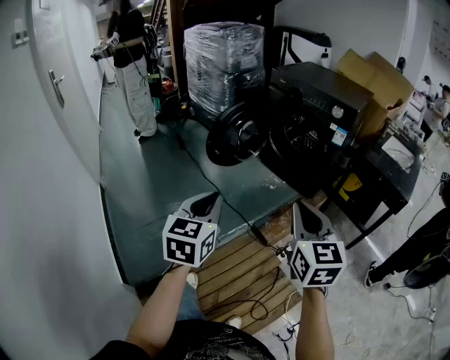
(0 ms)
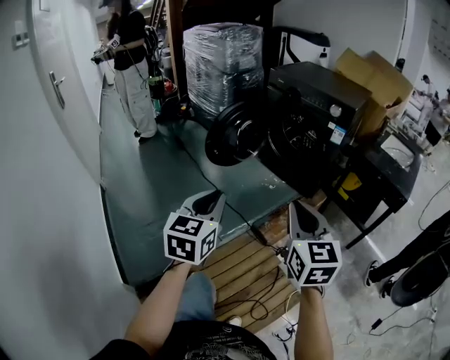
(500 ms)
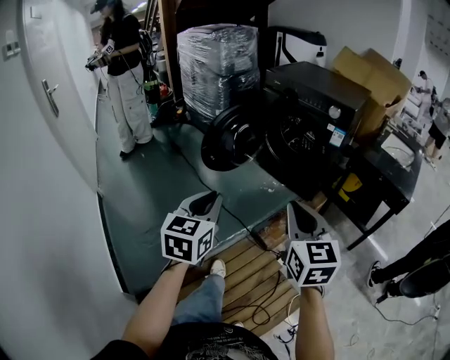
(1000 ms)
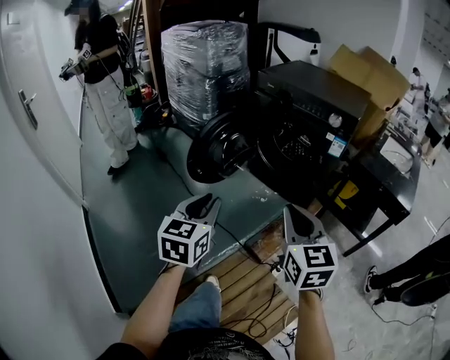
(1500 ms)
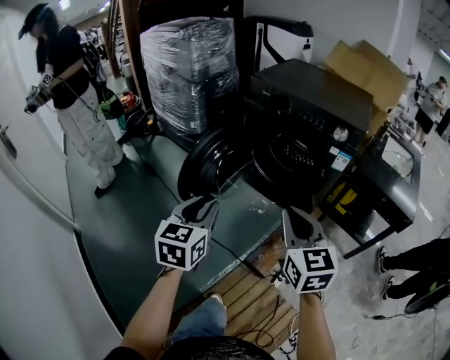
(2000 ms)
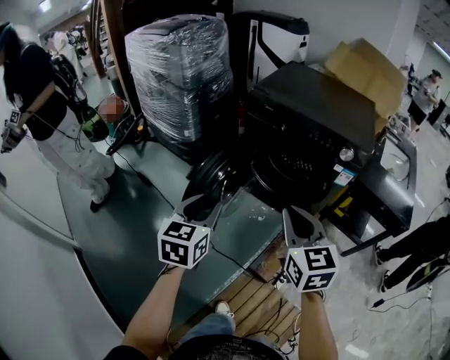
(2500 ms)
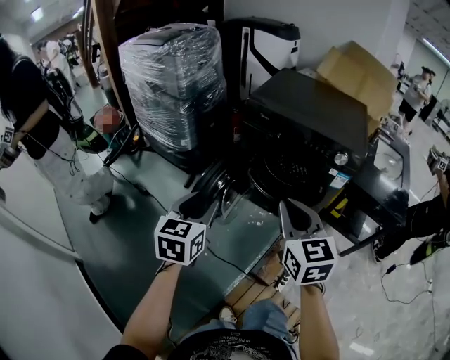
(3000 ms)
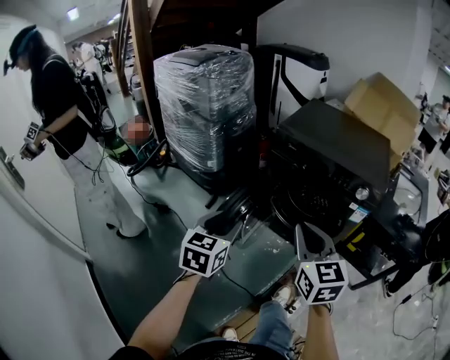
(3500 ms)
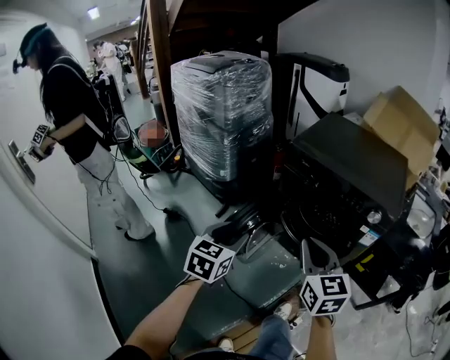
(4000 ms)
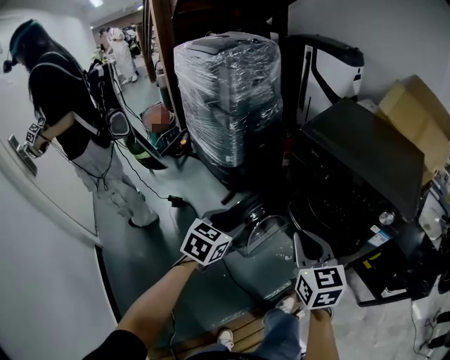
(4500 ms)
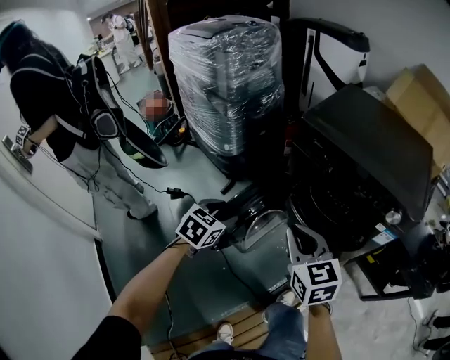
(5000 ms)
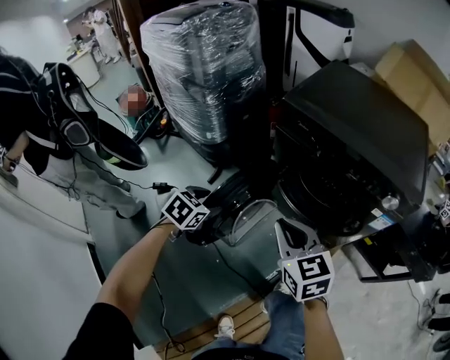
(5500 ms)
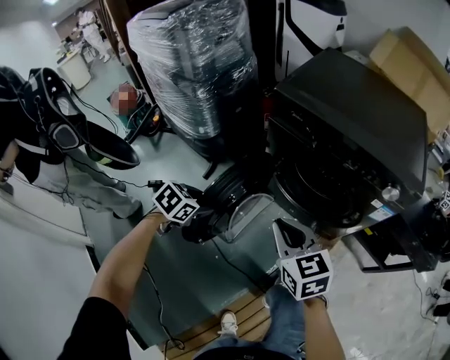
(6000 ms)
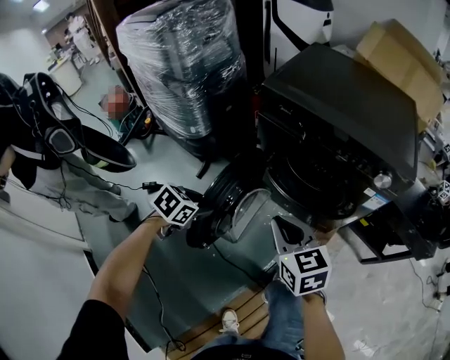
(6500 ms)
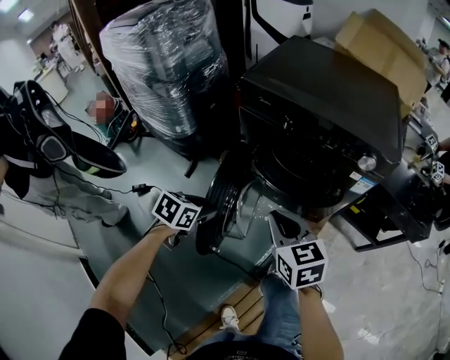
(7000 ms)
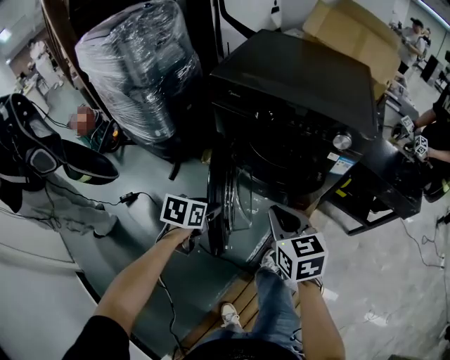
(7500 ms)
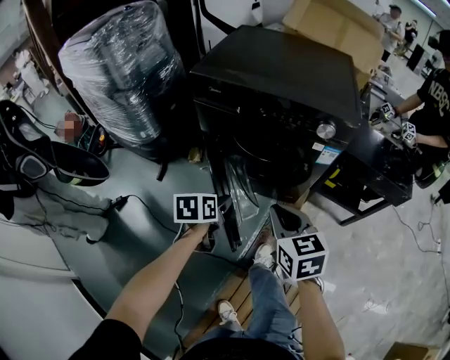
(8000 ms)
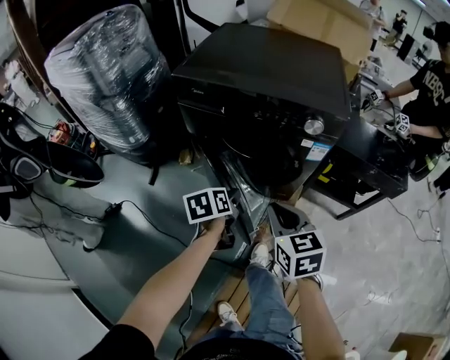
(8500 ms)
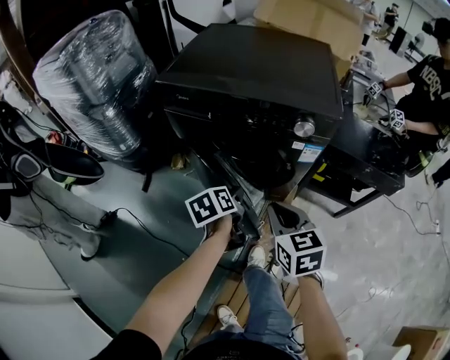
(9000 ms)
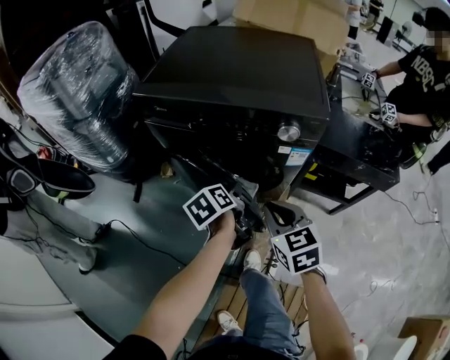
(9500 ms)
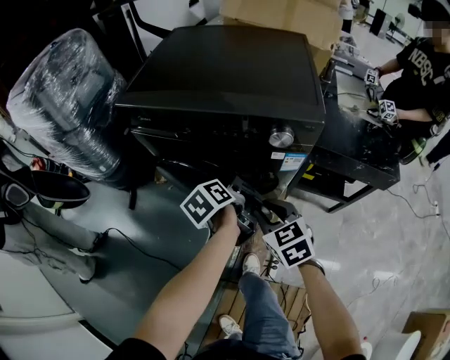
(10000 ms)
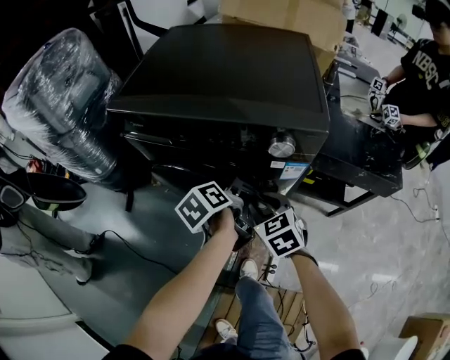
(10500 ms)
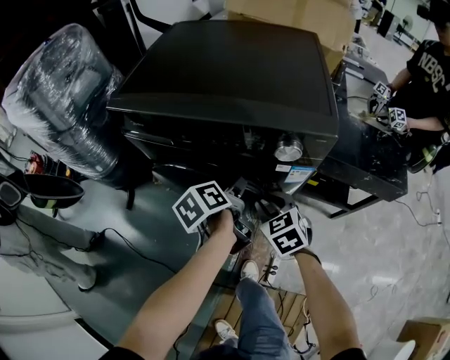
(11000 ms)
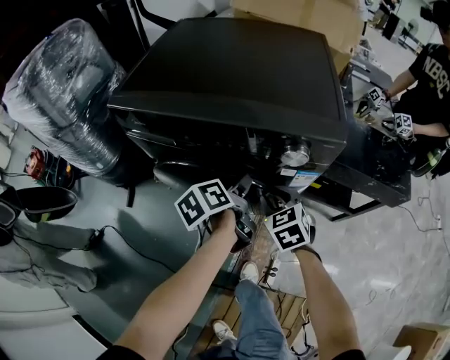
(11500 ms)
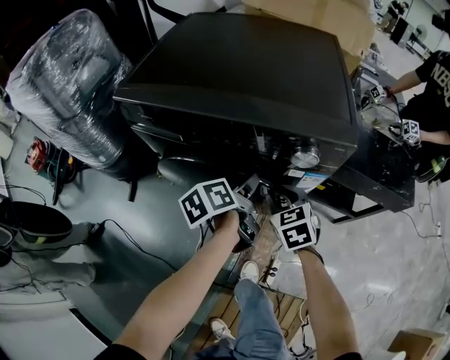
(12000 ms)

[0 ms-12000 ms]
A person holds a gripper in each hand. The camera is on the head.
0 ms to 2000 ms: Both grippers move forward, some 30 cm.
2000 ms to 4000 ms: The right gripper moves forward, to the left and upward, approximately 20 cm. The left gripper goes approximately 20 cm forward.
4000 ms to 6000 ms: Both grippers move downward and forward, approximately 20 cm. The left gripper angles its fingers downward, by approximately 30 degrees.
6000 ms to 8000 ms: Both grippers move to the right, roughly 20 cm. The right gripper swivels some 20 degrees; the left gripper swivels approximately 30 degrees.
8000 ms to 10000 ms: The left gripper heads to the right and forward, covering roughly 20 cm, and swivels roughly 30 degrees; the right gripper travels forward, to the right and downward by about 15 cm.
10000 ms to 12000 ms: The left gripper is displaced forward by some 5 cm, while the right gripper heads forward and downward, covering about 15 cm.

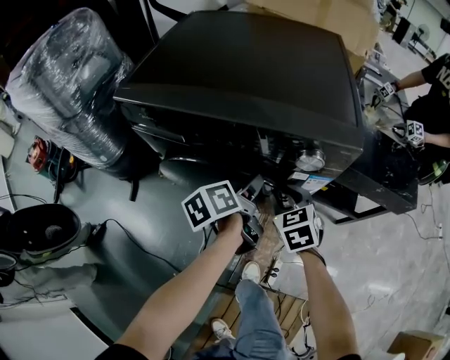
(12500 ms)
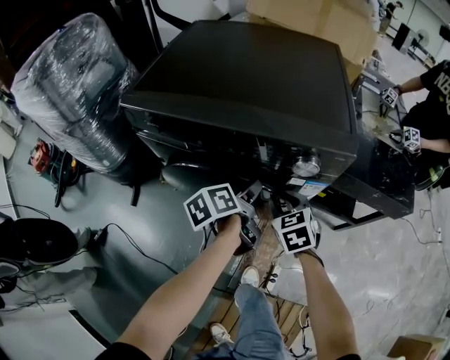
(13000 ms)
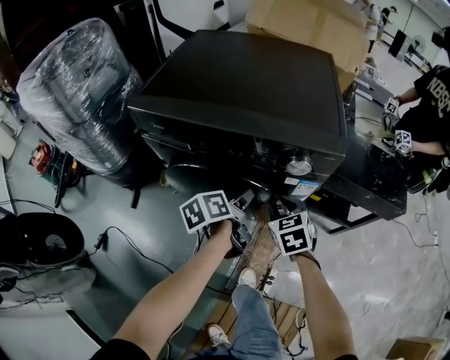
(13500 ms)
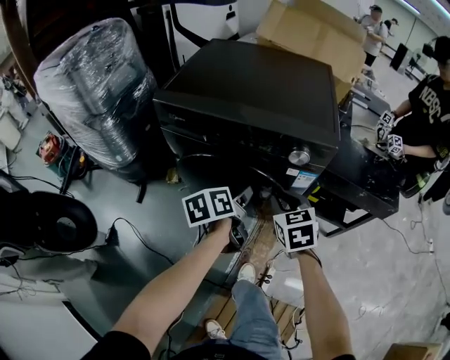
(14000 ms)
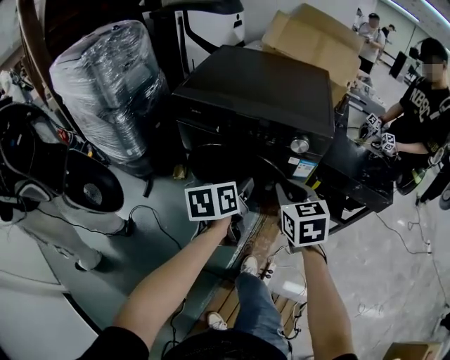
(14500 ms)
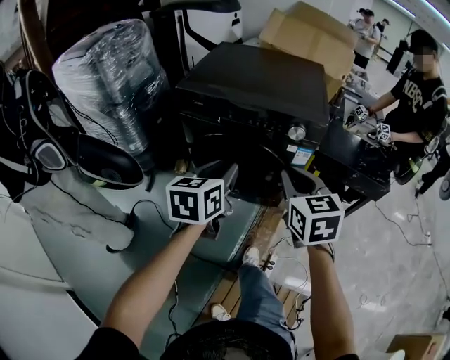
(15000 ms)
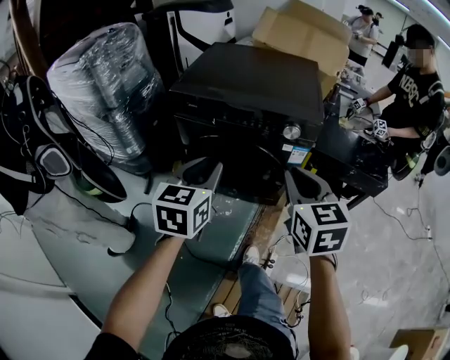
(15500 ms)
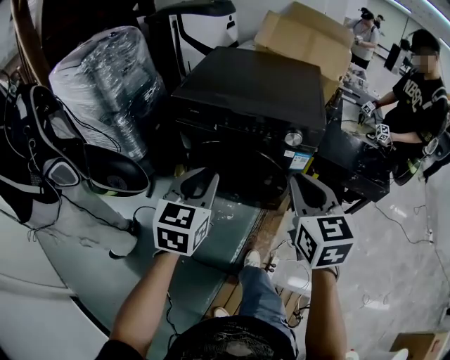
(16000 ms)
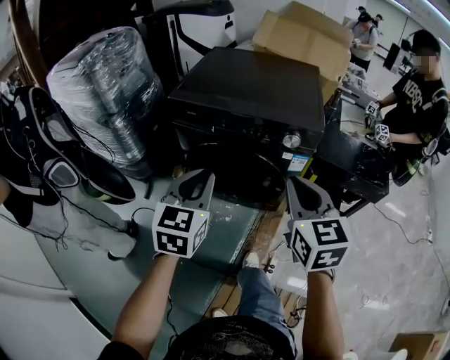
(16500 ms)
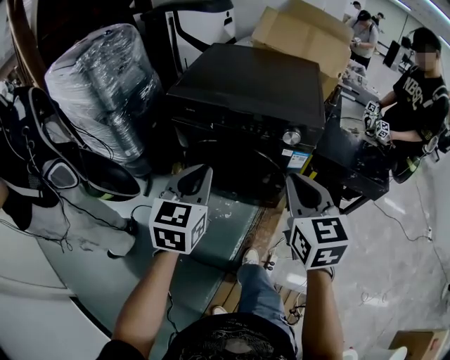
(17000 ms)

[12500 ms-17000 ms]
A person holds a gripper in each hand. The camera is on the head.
12500 ms to 14500 ms: The left gripper heads backward and upward, covering some 20 cm, rotates about 30 degrees, and closes its fingers; the right gripper goes about 25 cm upward and backward.
14500 ms to 17000 ms: The left gripper travels upward, to the left and backward by some 15 cm, swivels approximately 40 degrees, and closes its fingers. The right gripper shifts some 10 cm upward and backward.

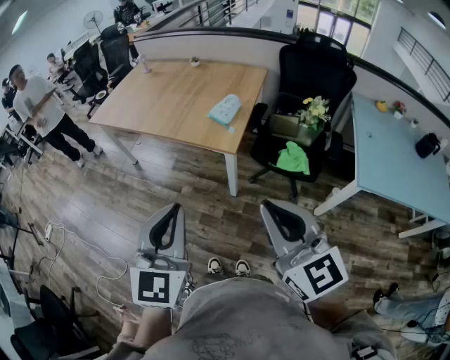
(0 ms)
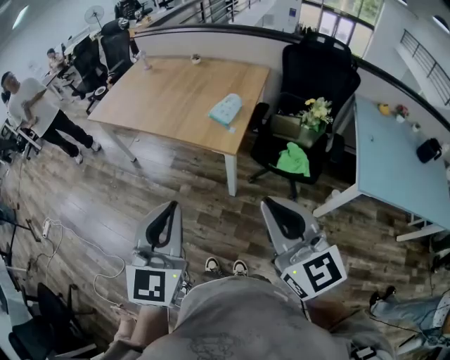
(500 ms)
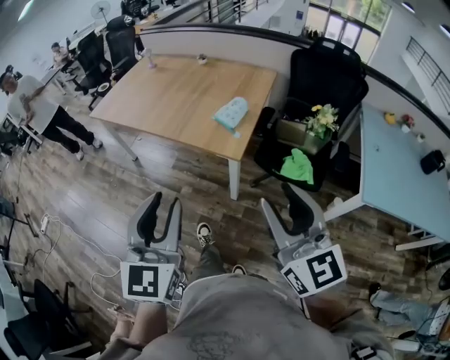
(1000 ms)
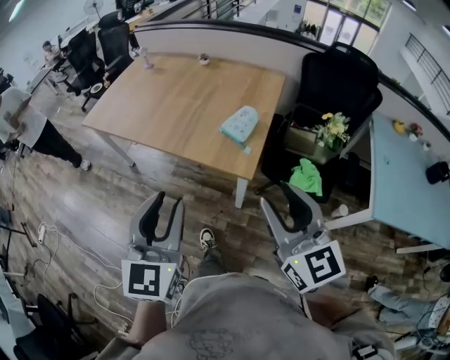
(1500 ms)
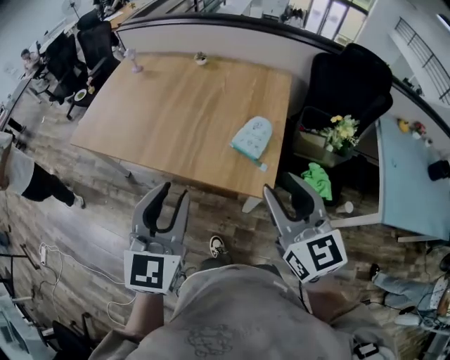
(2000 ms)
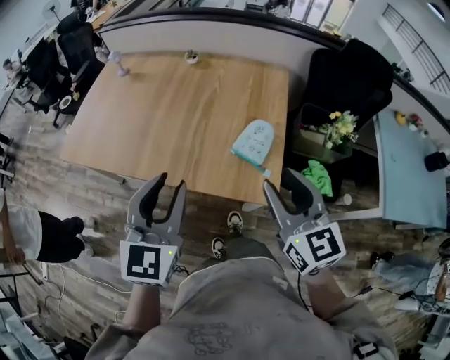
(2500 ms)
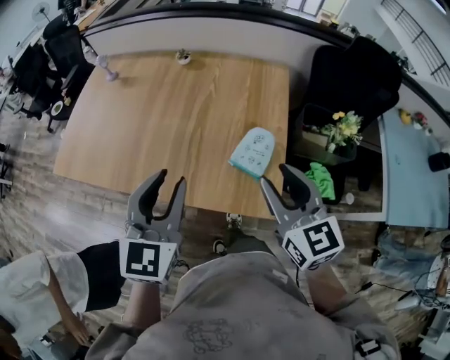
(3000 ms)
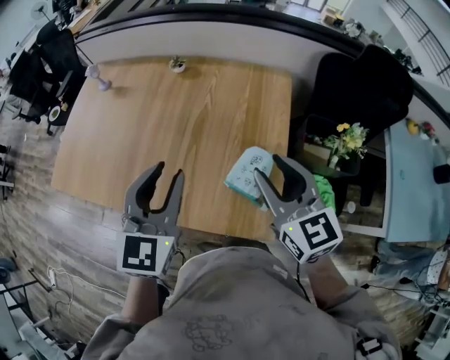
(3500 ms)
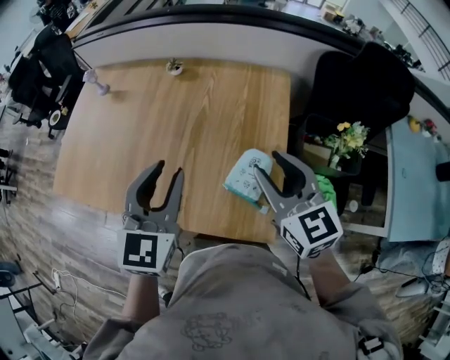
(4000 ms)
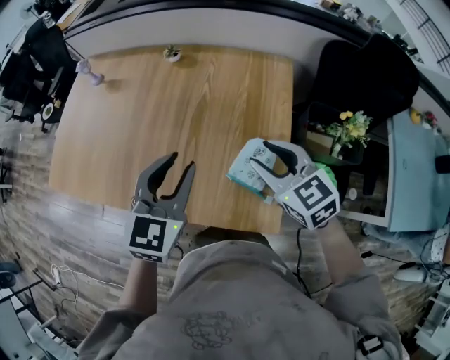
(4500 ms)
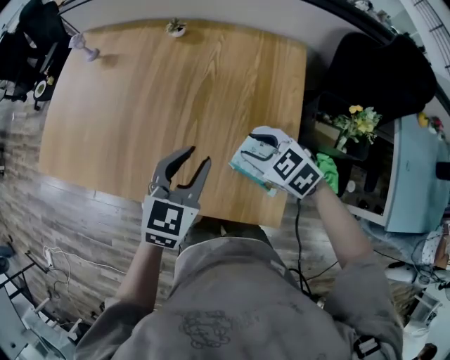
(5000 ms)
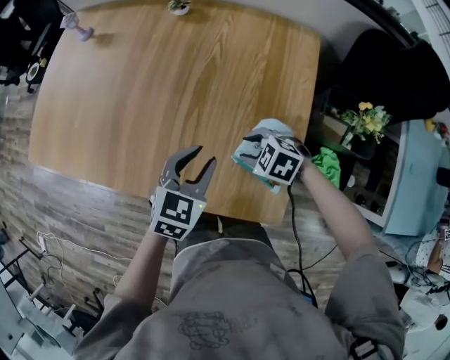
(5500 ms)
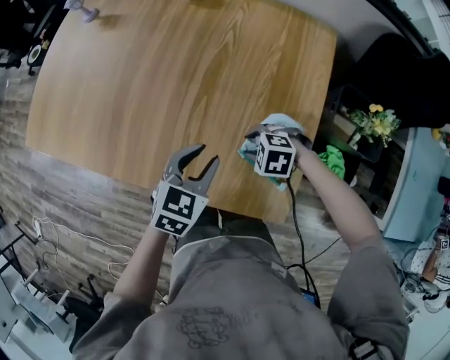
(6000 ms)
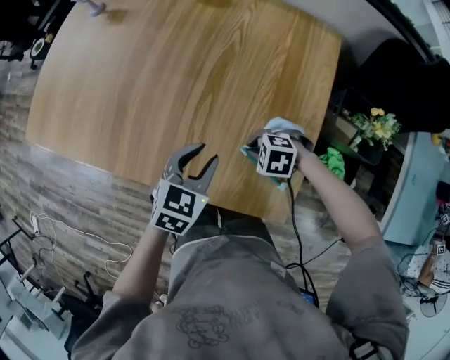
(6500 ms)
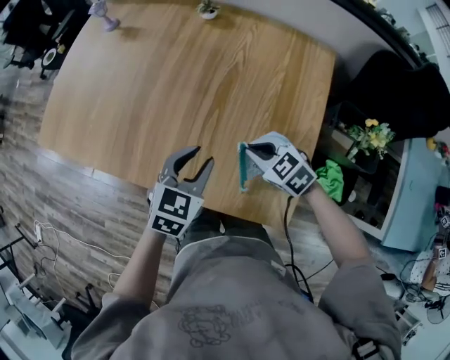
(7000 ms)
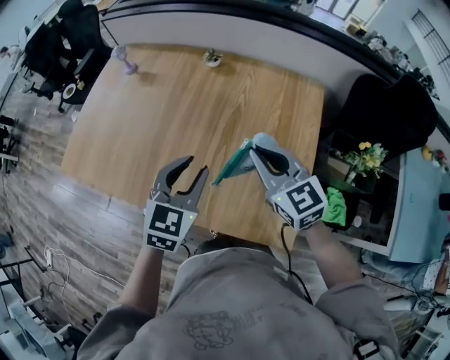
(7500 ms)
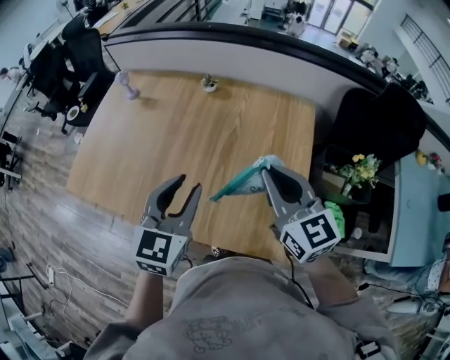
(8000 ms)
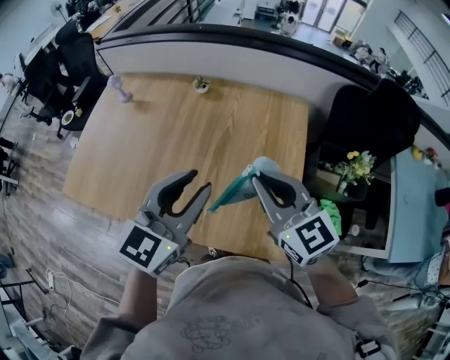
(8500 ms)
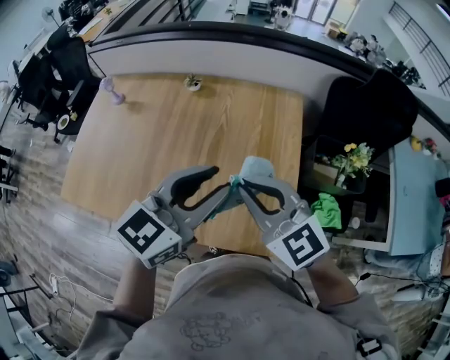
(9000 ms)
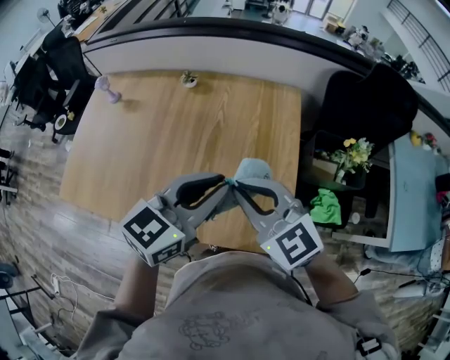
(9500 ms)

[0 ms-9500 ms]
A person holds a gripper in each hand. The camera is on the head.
0 ms to 2000 ms: The two grippers travel together, forward, some 40 cm. The right gripper opens, while the left gripper opens.
2000 ms to 4000 ms: The two grippers go about 30 cm forward.
4000 ms to 5500 ms: Both grippers move downward, approximately 25 cm. The left gripper swivels approximately 30 degrees; the right gripper tips its fingers downward by some 50 degrees.
5500 ms to 7500 ms: The left gripper heads upward, covering some 15 cm, while the right gripper moves upward, about 25 cm, points its fingers some 50 degrees further upward, and closes its fingers.
7500 ms to 9500 ms: The right gripper is displaced backward and upward by roughly 10 cm. Meanwhile the left gripper travels to the right and upward by about 15 cm, and rotates about 30 degrees.
